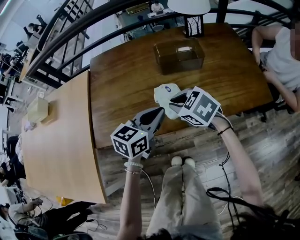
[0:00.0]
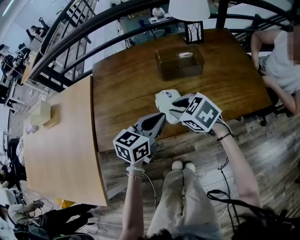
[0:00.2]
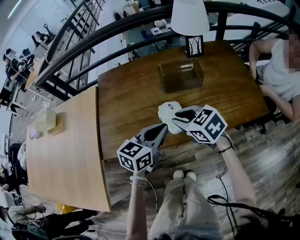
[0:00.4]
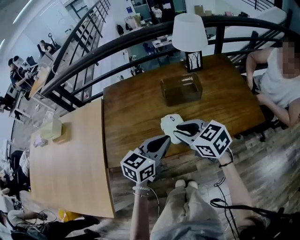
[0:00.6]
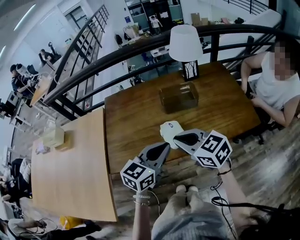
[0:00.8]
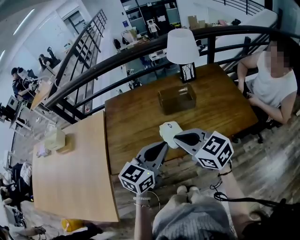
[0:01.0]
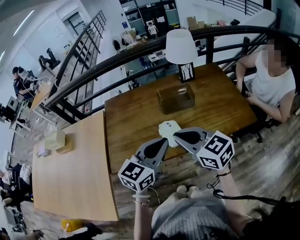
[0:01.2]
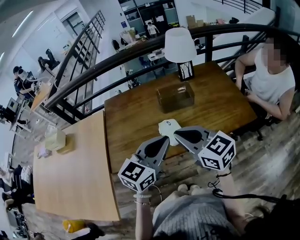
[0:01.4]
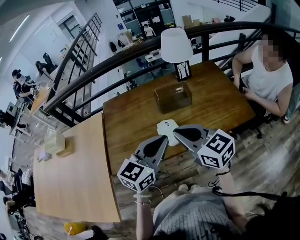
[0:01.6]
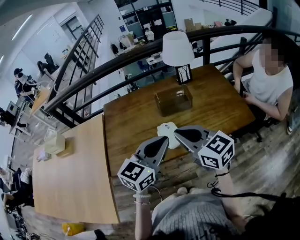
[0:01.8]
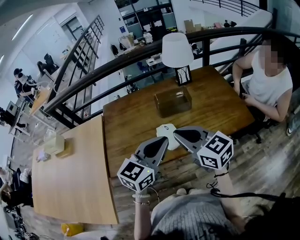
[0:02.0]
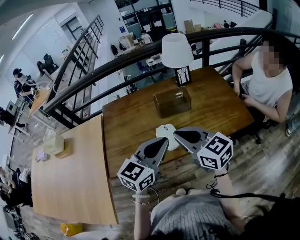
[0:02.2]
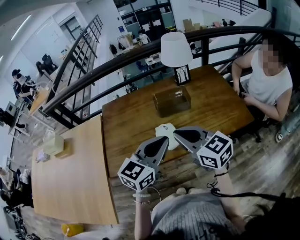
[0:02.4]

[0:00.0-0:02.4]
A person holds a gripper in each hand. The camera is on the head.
0:00.0 to 0:01.2: The grippers both shift upward and backward by approximately 20 cm. The right gripper angles its fingers upward, by about 30 degrees.
0:01.2 to 0:02.4: There are only small adjustments of the grippers.

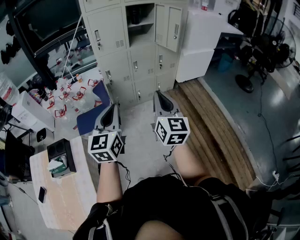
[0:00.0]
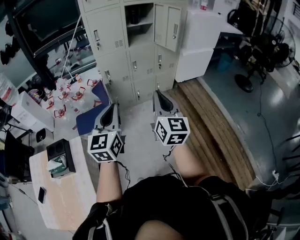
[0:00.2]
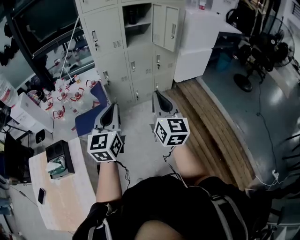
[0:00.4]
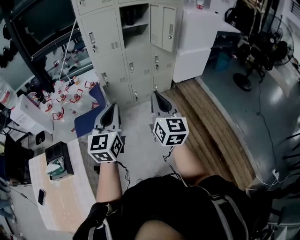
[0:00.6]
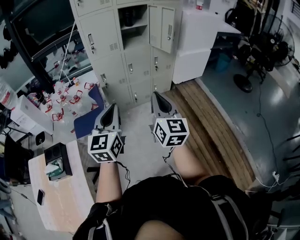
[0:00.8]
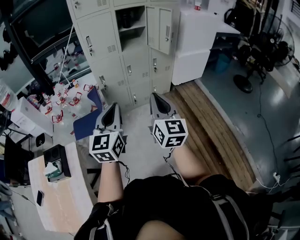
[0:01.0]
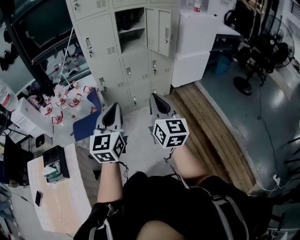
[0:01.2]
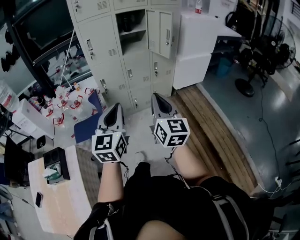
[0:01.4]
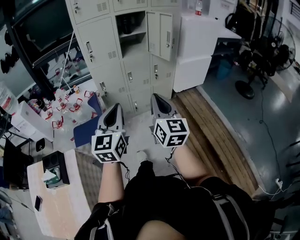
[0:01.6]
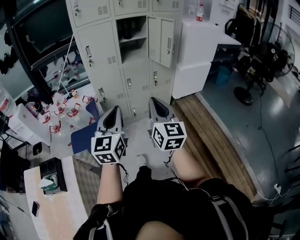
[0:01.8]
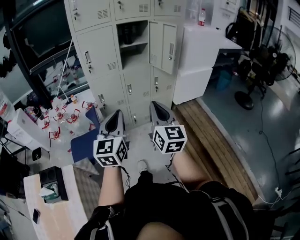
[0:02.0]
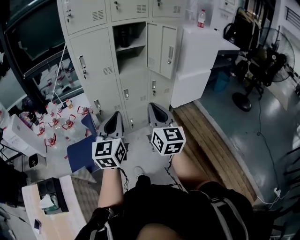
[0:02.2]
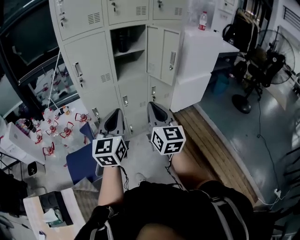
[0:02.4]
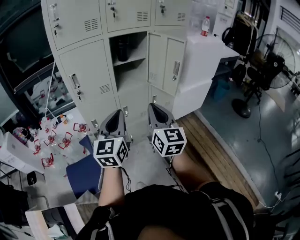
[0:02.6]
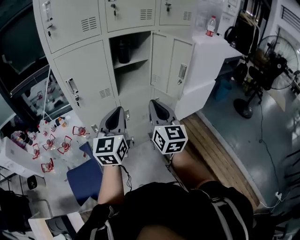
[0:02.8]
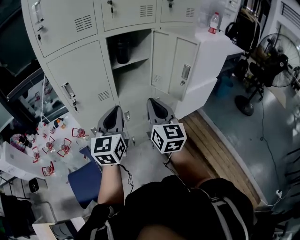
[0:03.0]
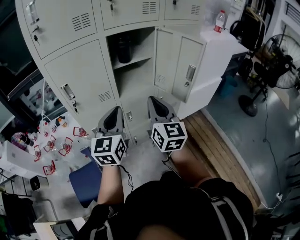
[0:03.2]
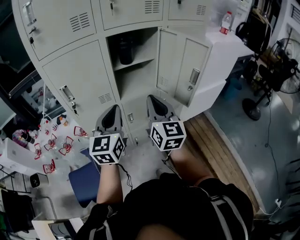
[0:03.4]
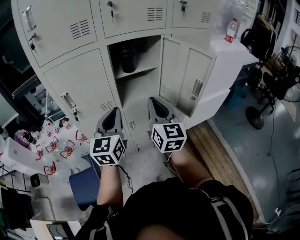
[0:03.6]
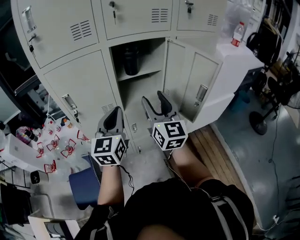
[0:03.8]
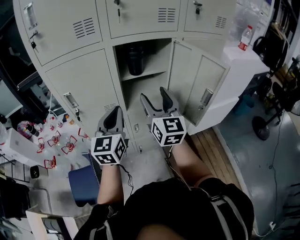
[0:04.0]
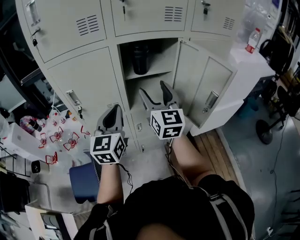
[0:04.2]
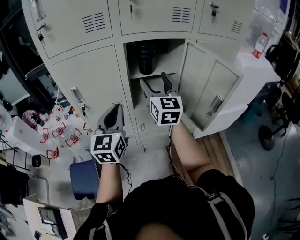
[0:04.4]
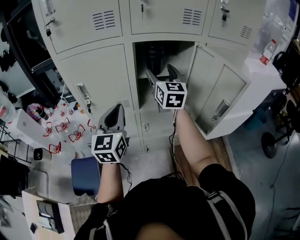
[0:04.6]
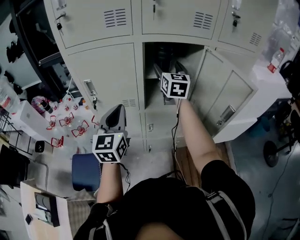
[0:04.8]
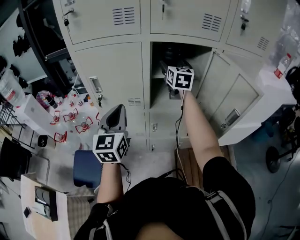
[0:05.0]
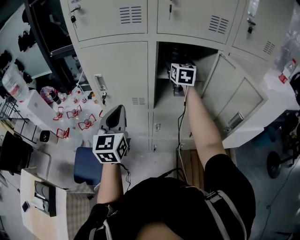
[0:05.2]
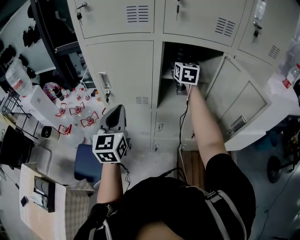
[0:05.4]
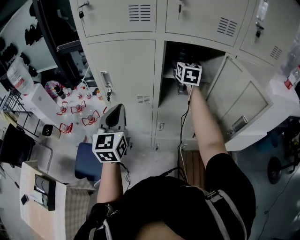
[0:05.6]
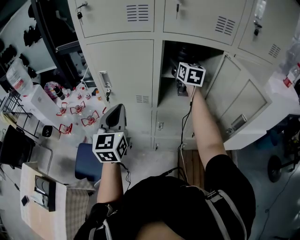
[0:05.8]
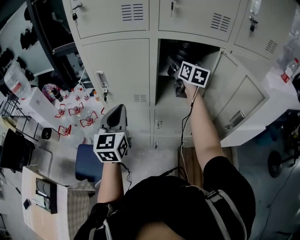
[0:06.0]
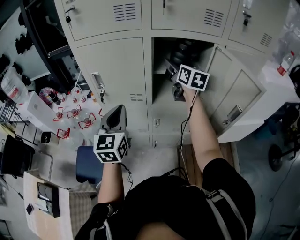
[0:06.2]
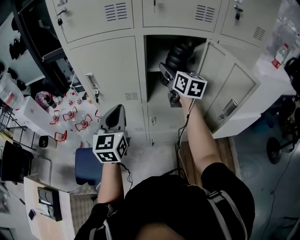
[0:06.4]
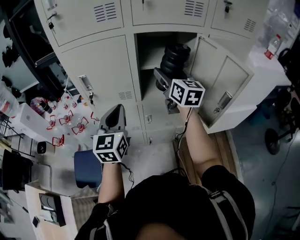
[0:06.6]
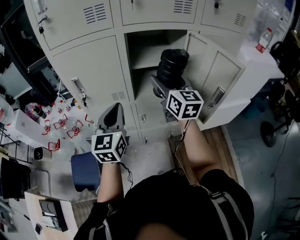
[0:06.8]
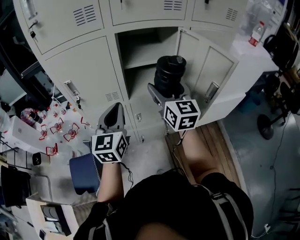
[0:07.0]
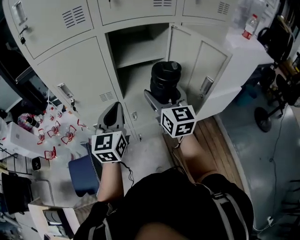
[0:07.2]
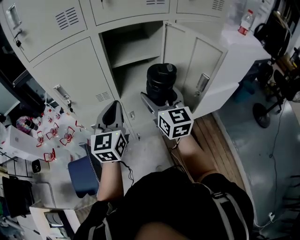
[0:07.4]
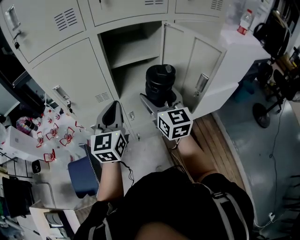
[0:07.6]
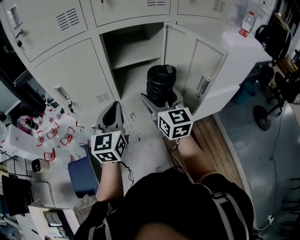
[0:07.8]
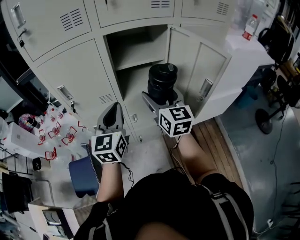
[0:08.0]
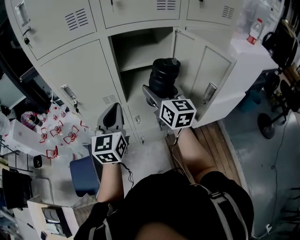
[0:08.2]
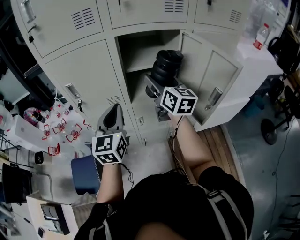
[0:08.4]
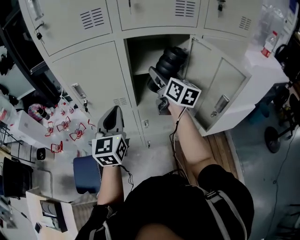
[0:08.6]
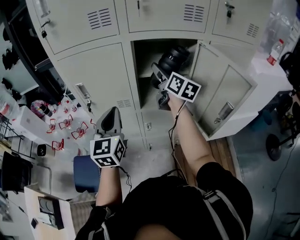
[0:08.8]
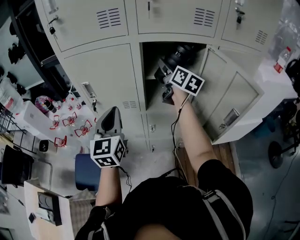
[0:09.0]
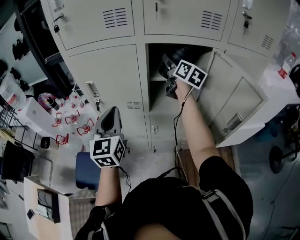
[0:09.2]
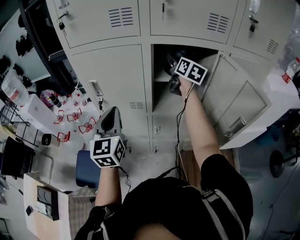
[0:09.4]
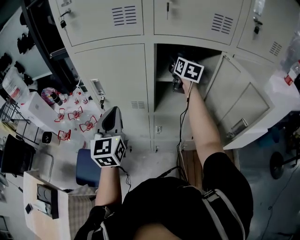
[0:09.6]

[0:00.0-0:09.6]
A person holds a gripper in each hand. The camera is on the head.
0:00.0 to 0:01.6: The grippers both shift to the right and forward by about 10 cm.
0:01.6 to 0:03.2: The two grippers travel together, forward, about 50 cm.
0:03.2 to 0:04.8: The left gripper goes about 10 cm forward, and changes its angle by about 20 degrees, while the right gripper is displaced forward by about 35 cm, and opens up.
0:04.8 to 0:06.4: The right gripper travels forward and back again, roughly 10 cm each way.
0:06.4 to 0:08.0: The right gripper shifts roughly 15 cm backward, while the left gripper goes about 10 cm to the right.
0:08.0 to 0:09.6: The right gripper heads forward, covering some 30 cm. The left gripper moves to the left, approximately 10 cm, and changes its angle by approximately 20 degrees.

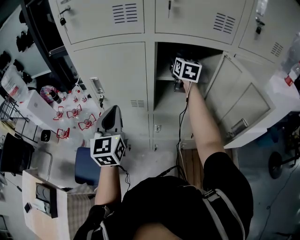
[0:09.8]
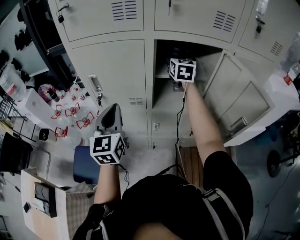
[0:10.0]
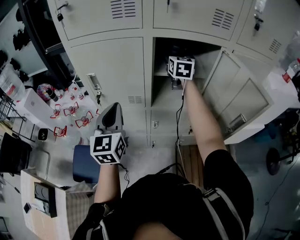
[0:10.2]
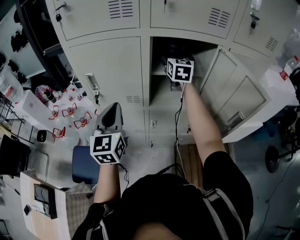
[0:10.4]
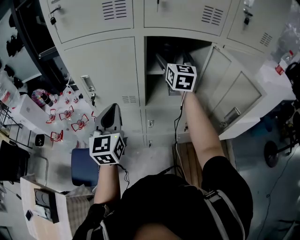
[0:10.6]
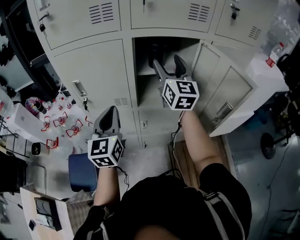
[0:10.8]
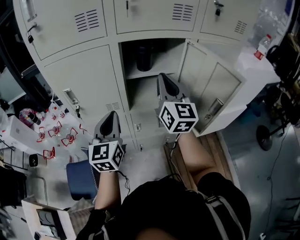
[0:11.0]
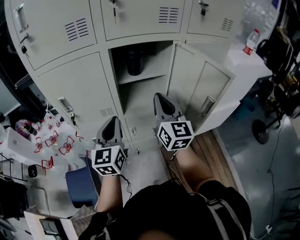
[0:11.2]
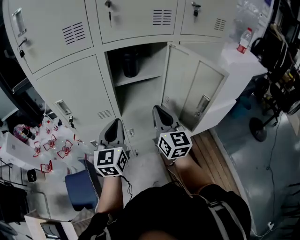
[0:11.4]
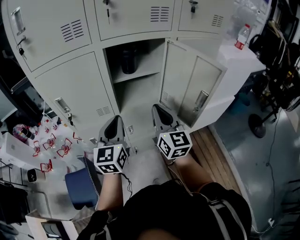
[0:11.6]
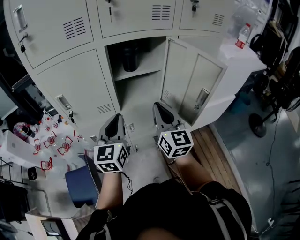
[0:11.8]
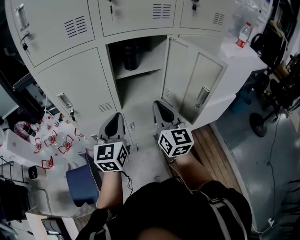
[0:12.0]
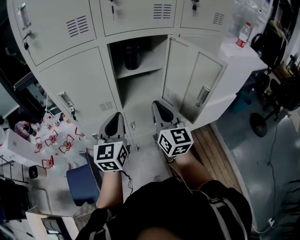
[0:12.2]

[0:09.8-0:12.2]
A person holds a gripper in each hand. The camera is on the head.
0:09.8 to 0:11.0: The right gripper moves backward, about 25 cm, and closes its fingers. The left gripper is displaced to the right by about 10 cm.
0:11.0 to 0:12.2: The right gripper heads backward and downward, covering roughly 15 cm. The left gripper moves roughly 5 cm.

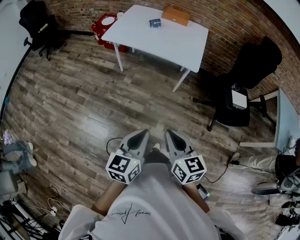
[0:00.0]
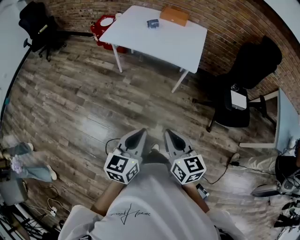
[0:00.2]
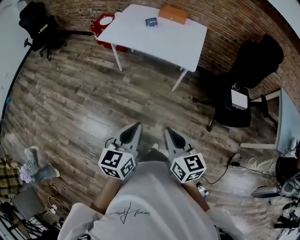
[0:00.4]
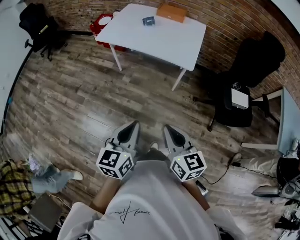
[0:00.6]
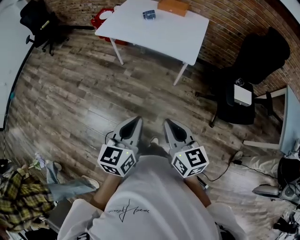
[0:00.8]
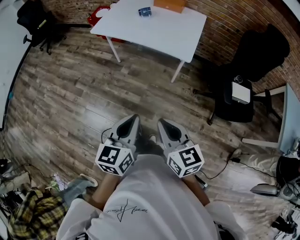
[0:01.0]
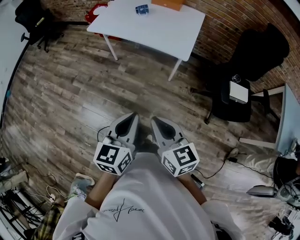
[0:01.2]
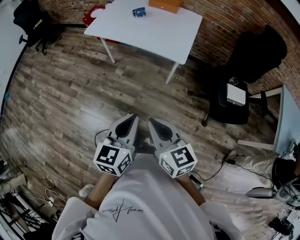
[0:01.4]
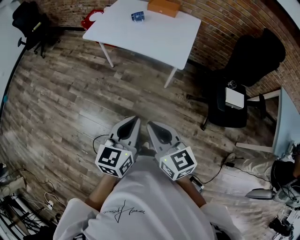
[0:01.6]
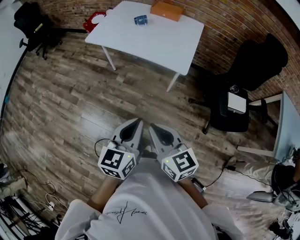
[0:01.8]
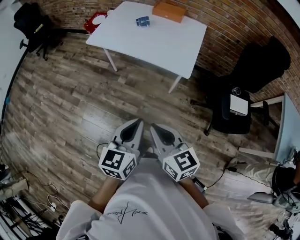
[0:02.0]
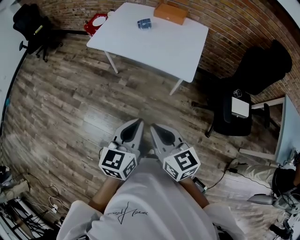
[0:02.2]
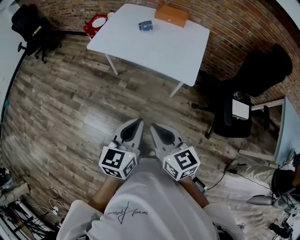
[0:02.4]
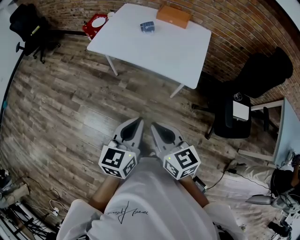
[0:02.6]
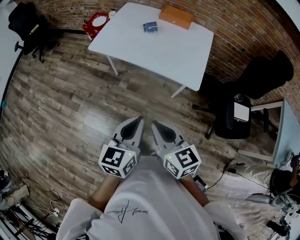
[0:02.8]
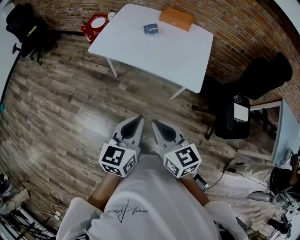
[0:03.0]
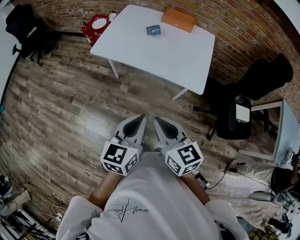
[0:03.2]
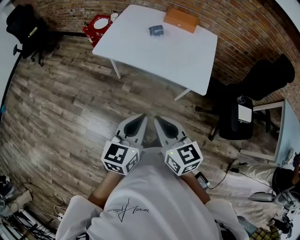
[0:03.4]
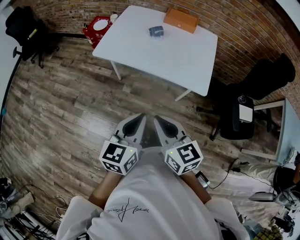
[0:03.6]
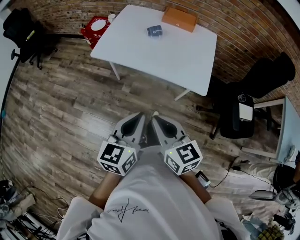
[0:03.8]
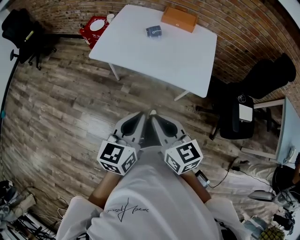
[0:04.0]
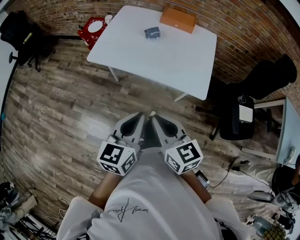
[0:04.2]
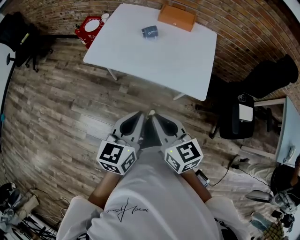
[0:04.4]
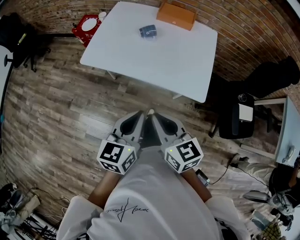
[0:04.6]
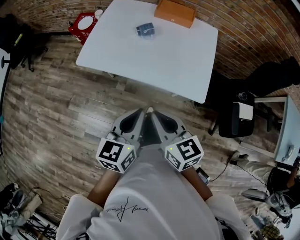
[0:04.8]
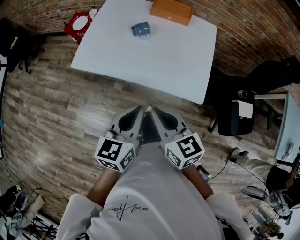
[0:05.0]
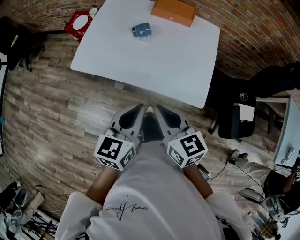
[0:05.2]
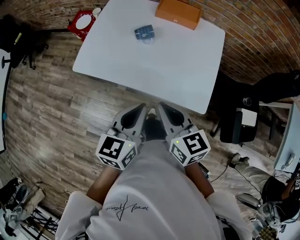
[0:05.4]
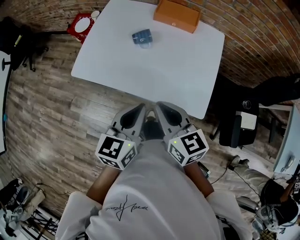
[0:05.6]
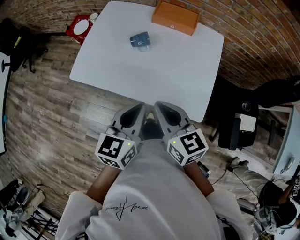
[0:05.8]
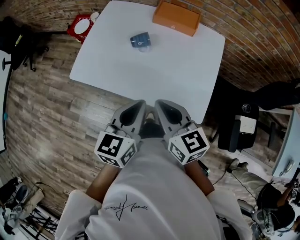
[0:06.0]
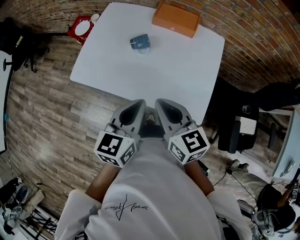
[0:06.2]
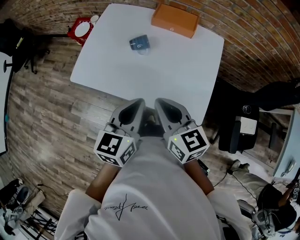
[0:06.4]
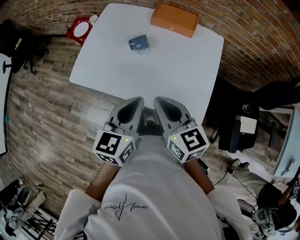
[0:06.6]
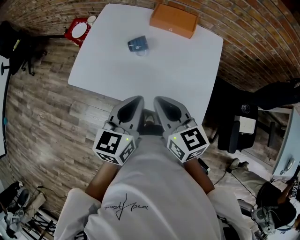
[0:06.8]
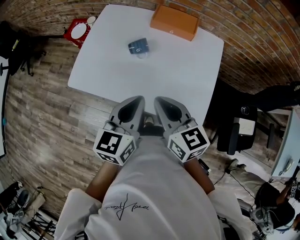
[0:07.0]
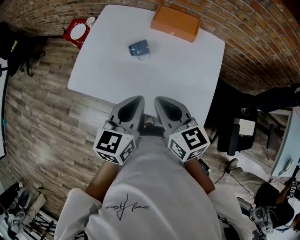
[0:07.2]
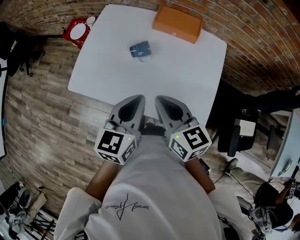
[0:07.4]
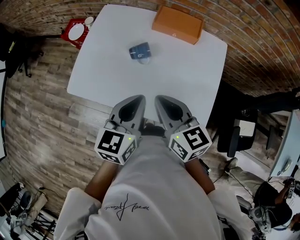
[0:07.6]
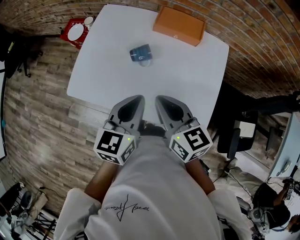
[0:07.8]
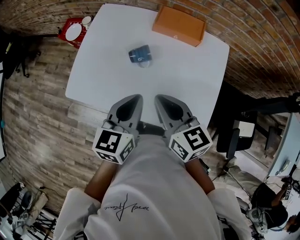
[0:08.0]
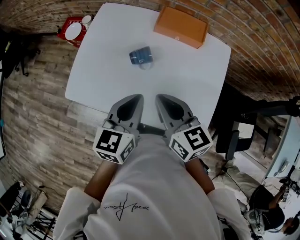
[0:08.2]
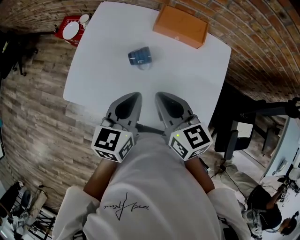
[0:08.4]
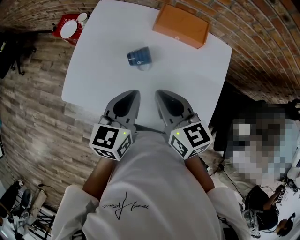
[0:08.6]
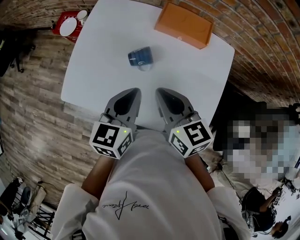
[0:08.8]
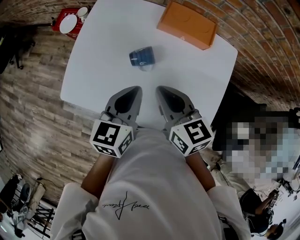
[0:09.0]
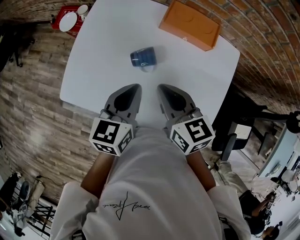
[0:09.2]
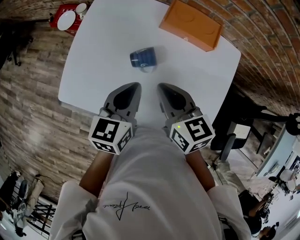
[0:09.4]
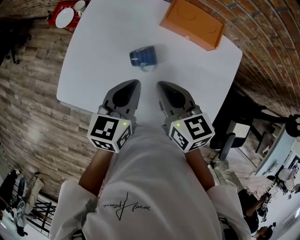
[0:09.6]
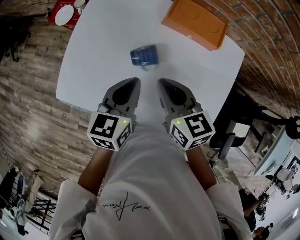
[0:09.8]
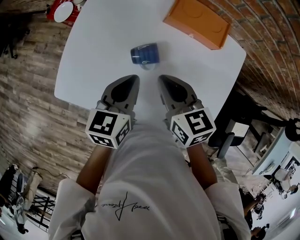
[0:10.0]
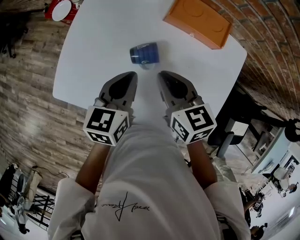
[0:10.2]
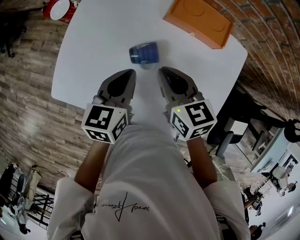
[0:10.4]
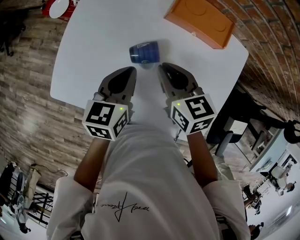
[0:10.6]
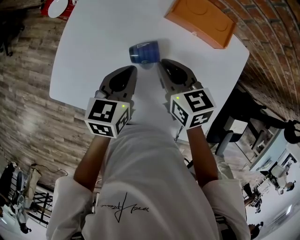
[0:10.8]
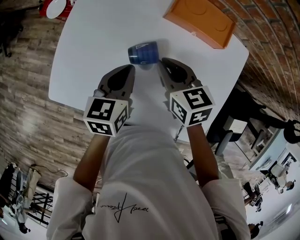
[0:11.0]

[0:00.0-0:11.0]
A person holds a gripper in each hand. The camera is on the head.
0:00.0 to 0:01.6: Both grippers travel together to the right and forward, some 10 cm.
0:01.6 to 0:03.2: The grippers both shift forward and to the left by approximately 20 cm.
0:03.2 to 0:04.8: The two grippers go roughly 15 cm forward.
0:04.8 to 0:06.2: Both grippers move forward, about 15 cm.
0:06.2 to 0:07.8: Both grippers move forward, about 10 cm.
0:07.8 to 0:09.4: The grippers both shift forward and downward by approximately 15 cm.
0:09.4 to 0:11.0: The grippers both shift downward and forward by some 10 cm.
